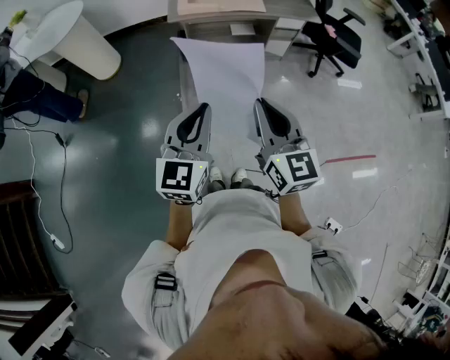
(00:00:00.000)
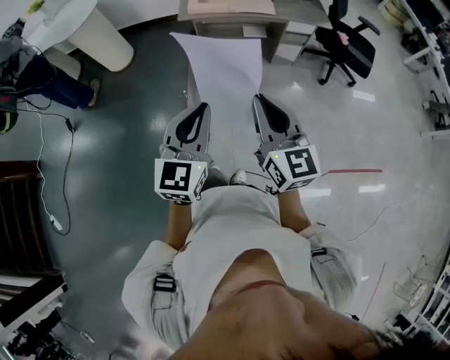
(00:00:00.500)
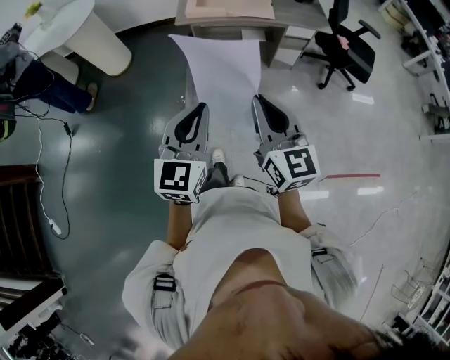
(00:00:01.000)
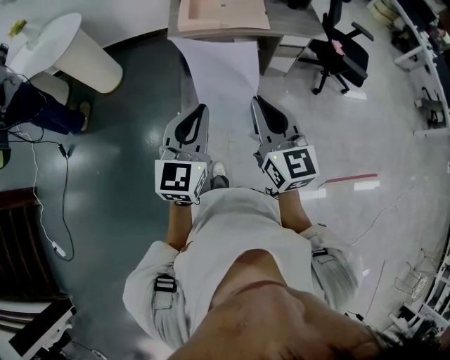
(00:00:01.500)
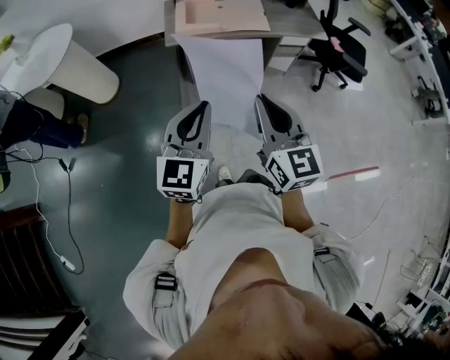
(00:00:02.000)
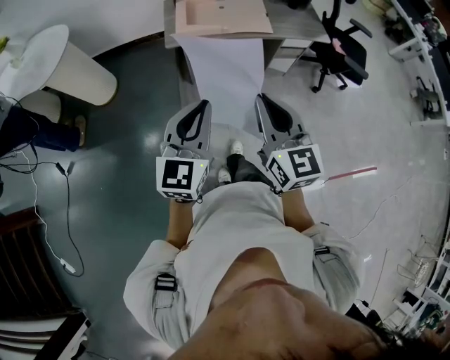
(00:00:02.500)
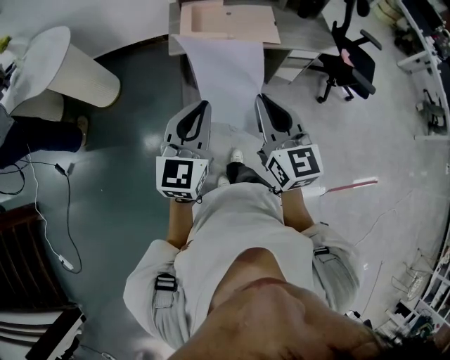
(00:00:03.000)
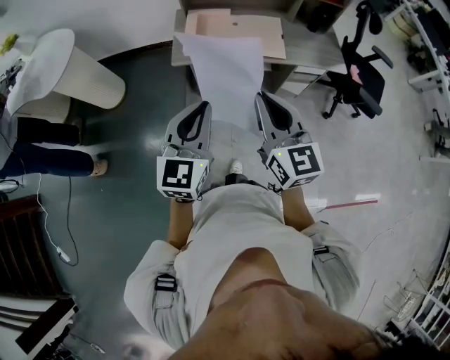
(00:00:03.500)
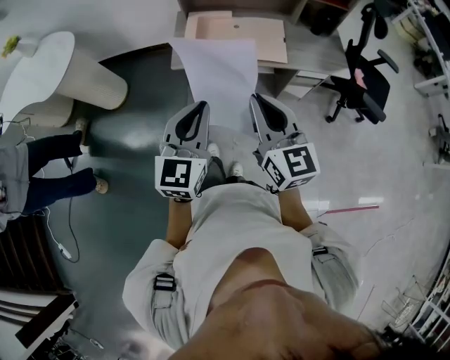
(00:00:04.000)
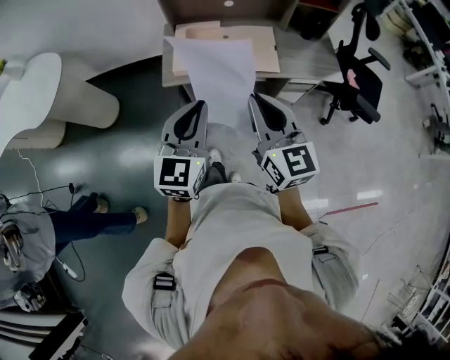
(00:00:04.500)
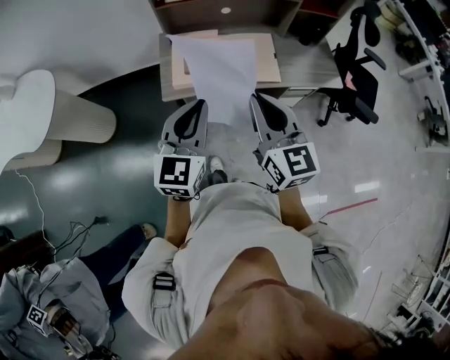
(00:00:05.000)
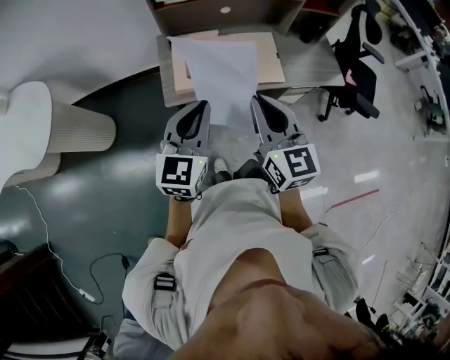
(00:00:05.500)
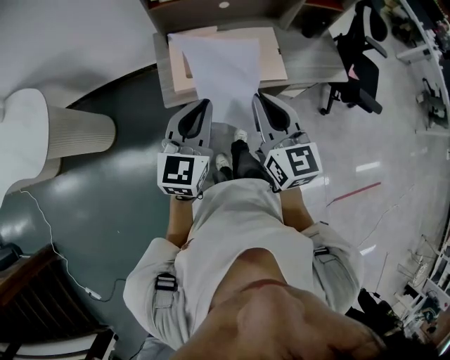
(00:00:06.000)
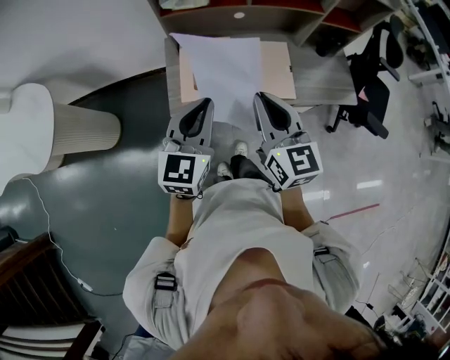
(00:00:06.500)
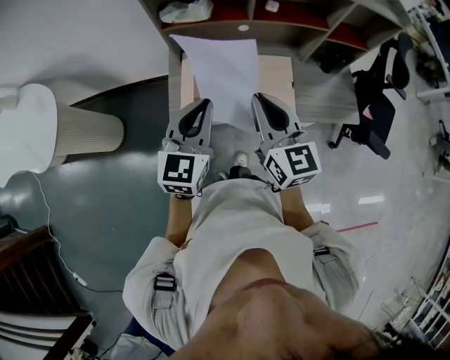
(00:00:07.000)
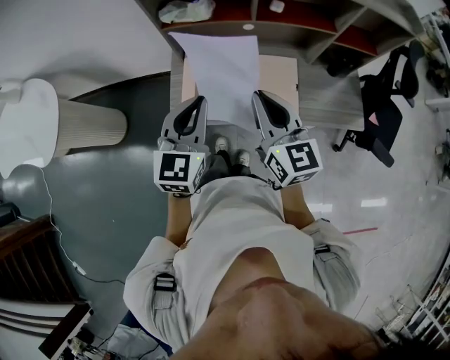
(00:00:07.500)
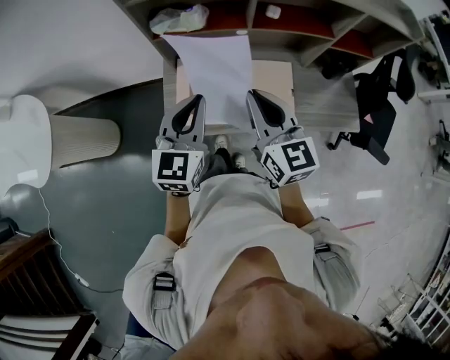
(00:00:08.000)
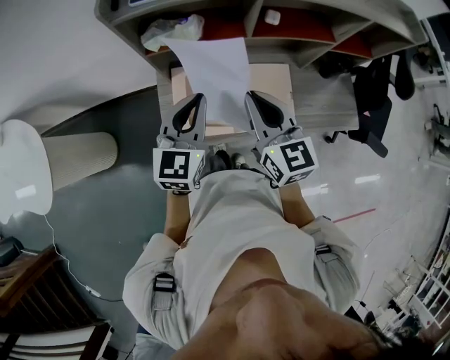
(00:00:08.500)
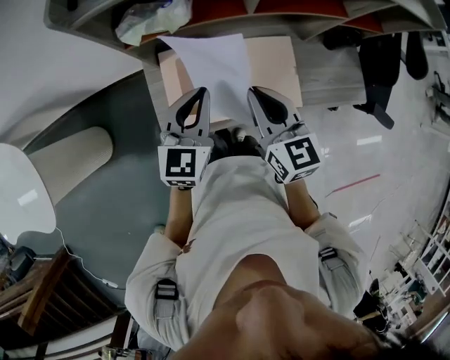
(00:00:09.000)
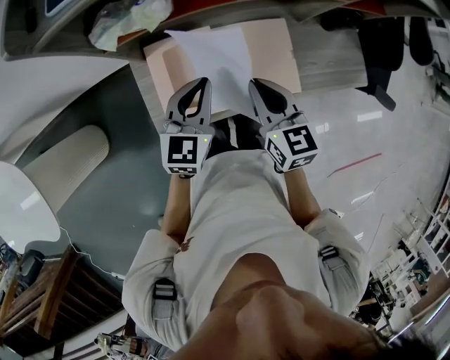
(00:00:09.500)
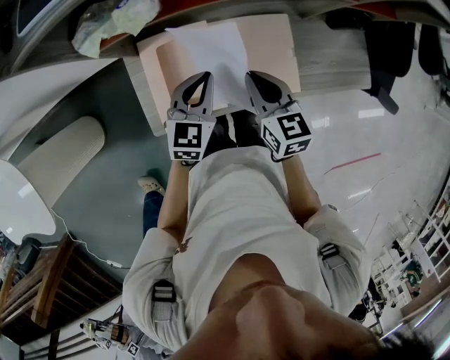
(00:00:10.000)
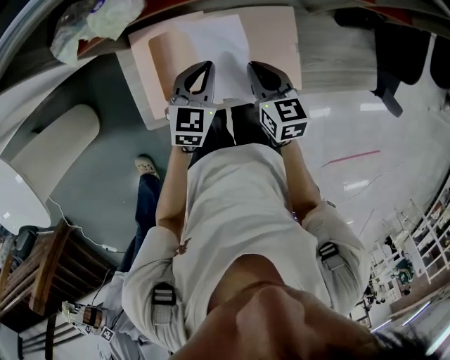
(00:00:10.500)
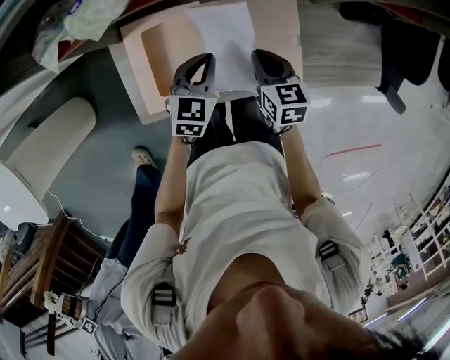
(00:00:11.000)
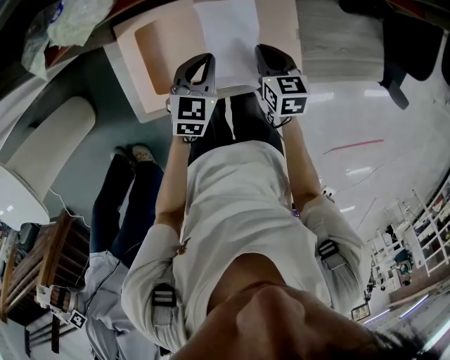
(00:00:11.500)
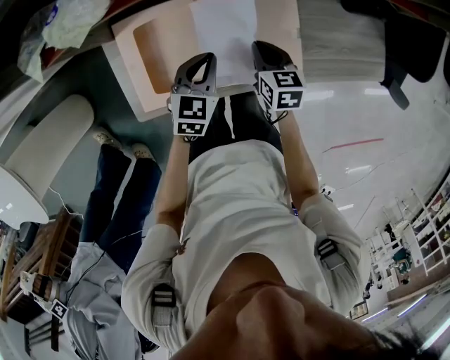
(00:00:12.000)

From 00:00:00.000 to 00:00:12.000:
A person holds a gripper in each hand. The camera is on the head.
From 00:00:00.000 to 00:00:02.000: The two grippers go some 20 cm forward.
From 00:00:02.000 to 00:00:04.000: The grippers both shift forward by about 25 cm.
From 00:00:04.000 to 00:00:06.000: Both grippers travel together forward, approximately 20 cm.
From 00:00:06.000 to 00:00:08.000: The grippers both shift forward by approximately 20 cm.
From 00:00:08.000 to 00:00:10.000: Both grippers move downward and forward, approximately 25 cm. The left gripper swivels approximately 20 degrees, while the right gripper rotates about 30 degrees.
From 00:00:10.000 to 00:00:12.000: The left gripper travels downward by about 10 cm; the right gripper shifts some 15 cm downward.

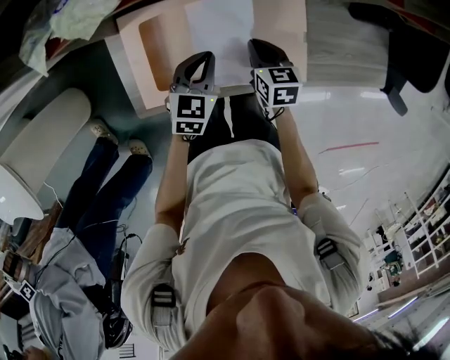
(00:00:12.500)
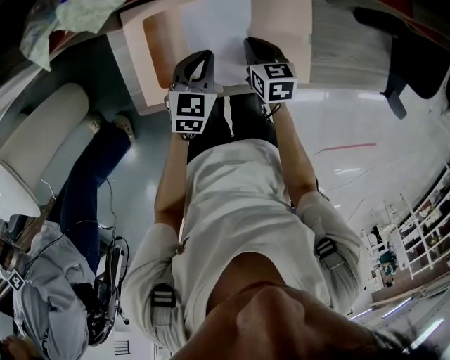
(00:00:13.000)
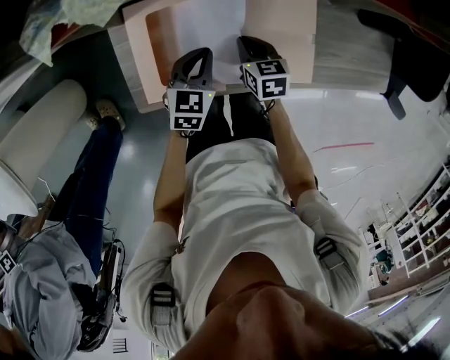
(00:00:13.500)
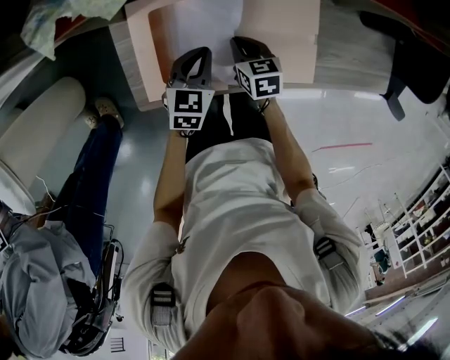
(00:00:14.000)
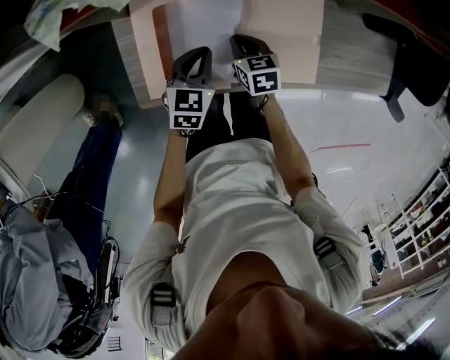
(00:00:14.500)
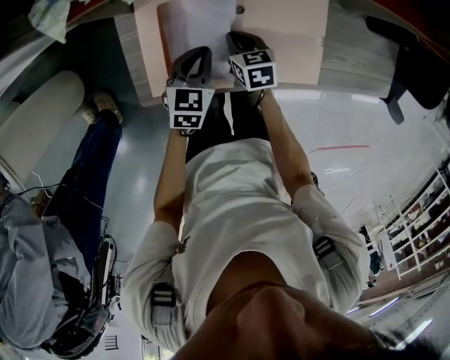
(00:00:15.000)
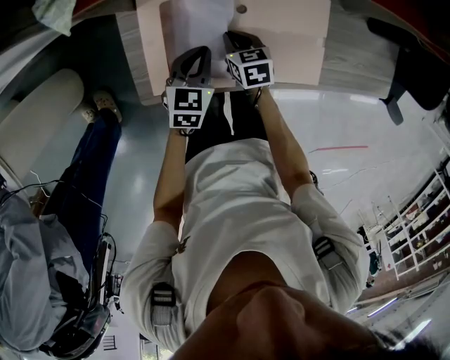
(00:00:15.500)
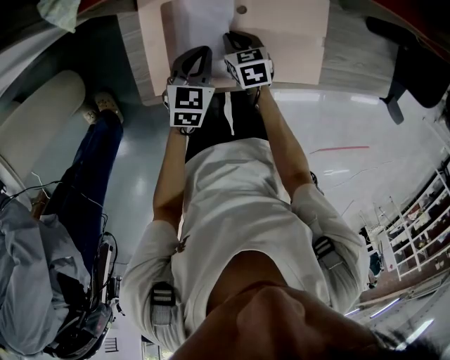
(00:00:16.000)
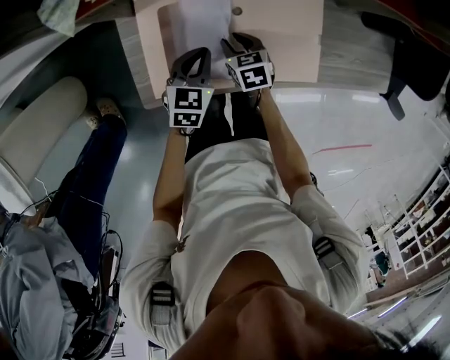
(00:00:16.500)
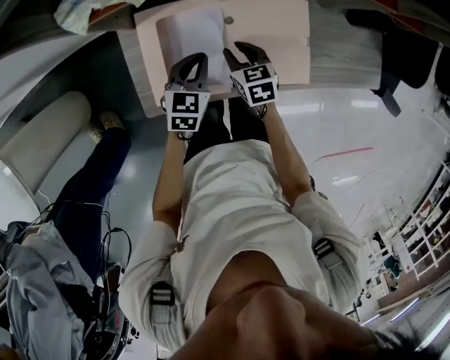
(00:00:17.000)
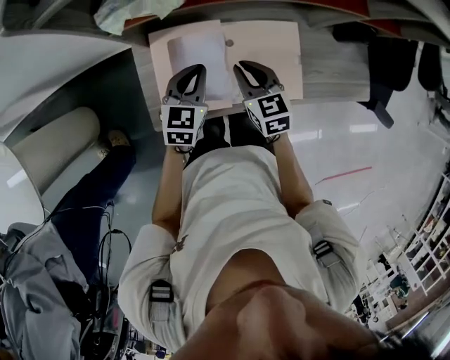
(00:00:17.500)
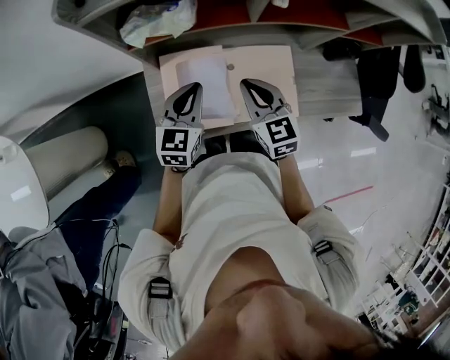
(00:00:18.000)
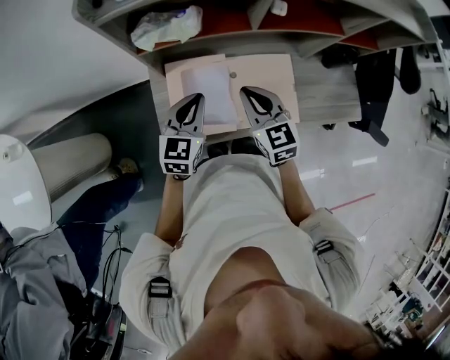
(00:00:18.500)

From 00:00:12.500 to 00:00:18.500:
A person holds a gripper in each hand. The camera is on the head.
From 00:00:12.500 to 00:00:14.500: The right gripper heads to the left, covering roughly 10 cm. The left gripper shifts about 5 cm to the left.
From 00:00:14.500 to 00:00:16.500: The right gripper opens up.
From 00:00:16.500 to 00:00:18.500: The grippers both shift upward by about 25 cm. The right gripper tilts its fingers about 30 degrees upward, and closes. Meanwhile the left gripper turns by some 20 degrees.

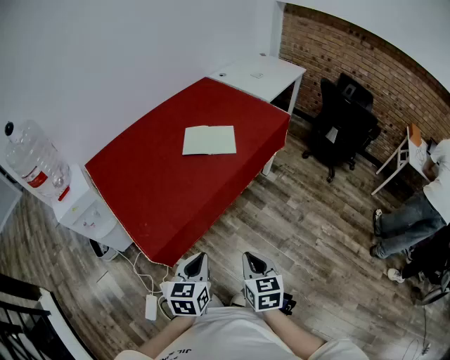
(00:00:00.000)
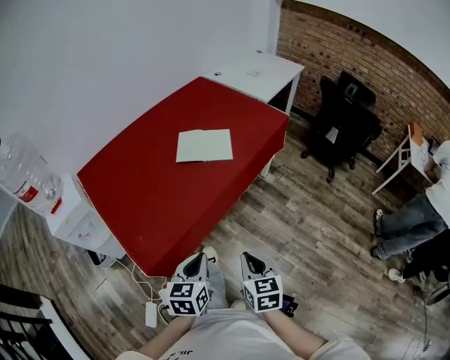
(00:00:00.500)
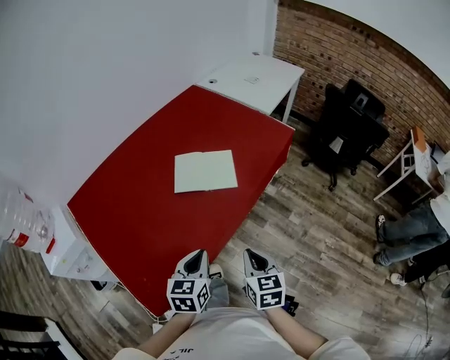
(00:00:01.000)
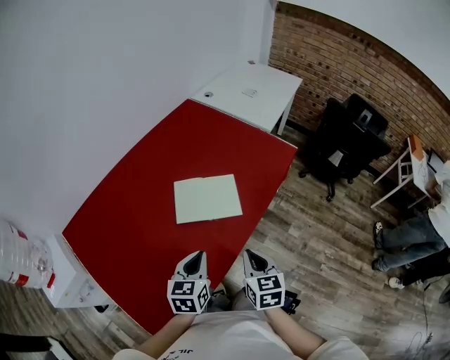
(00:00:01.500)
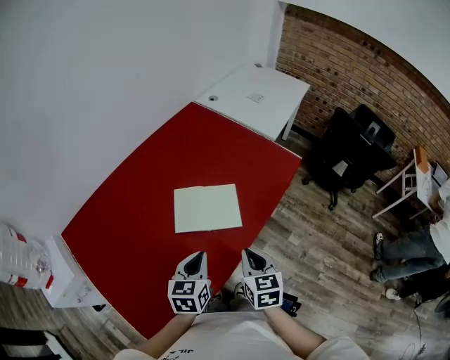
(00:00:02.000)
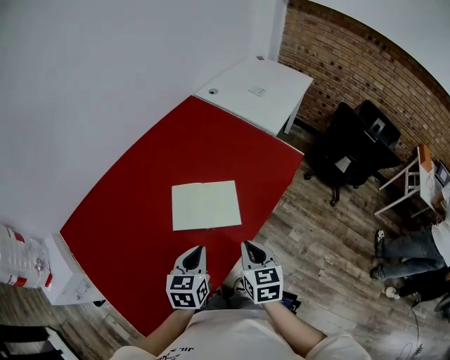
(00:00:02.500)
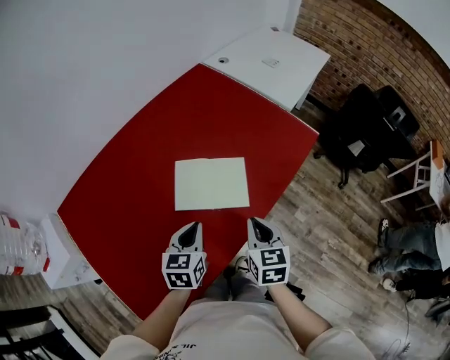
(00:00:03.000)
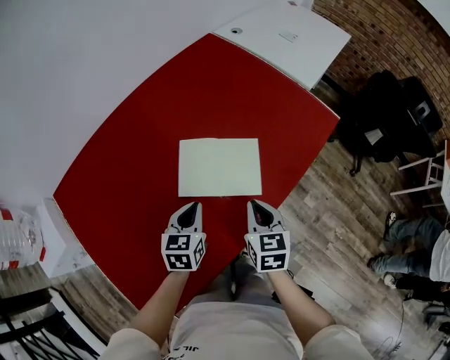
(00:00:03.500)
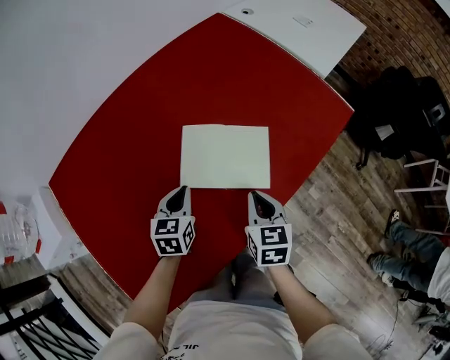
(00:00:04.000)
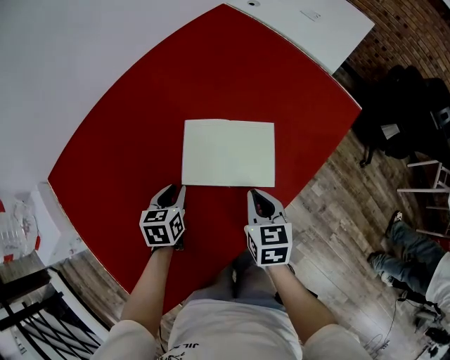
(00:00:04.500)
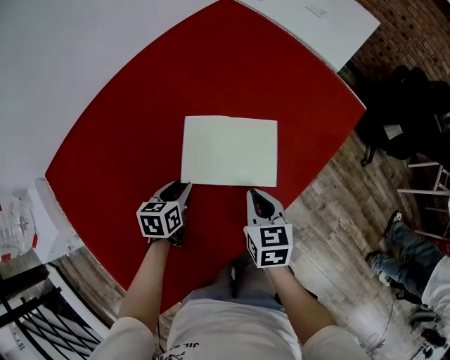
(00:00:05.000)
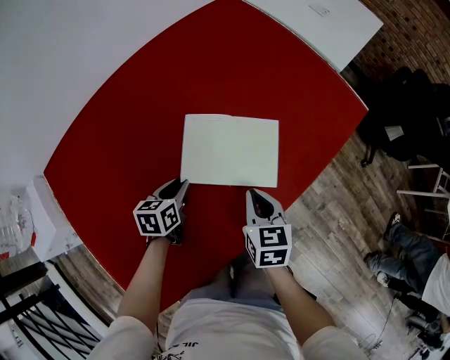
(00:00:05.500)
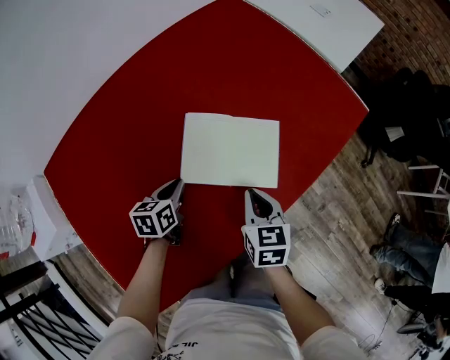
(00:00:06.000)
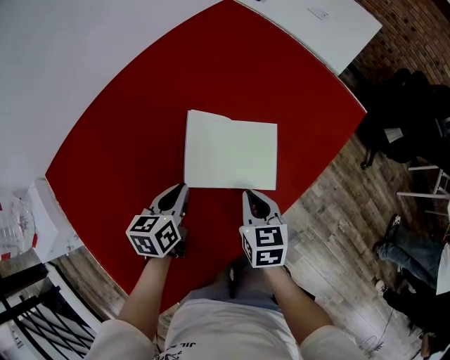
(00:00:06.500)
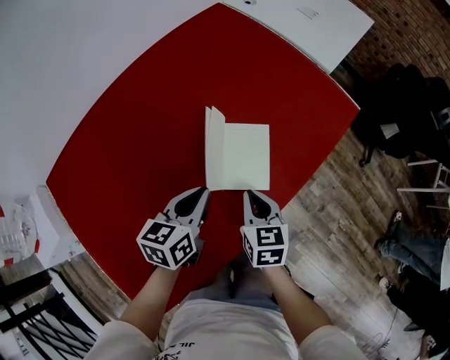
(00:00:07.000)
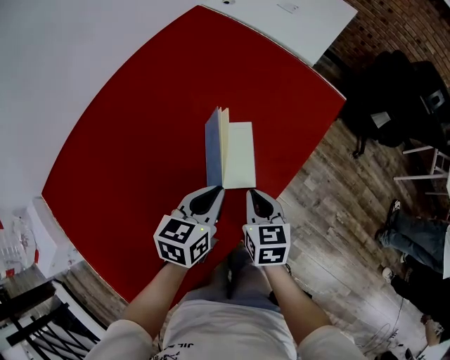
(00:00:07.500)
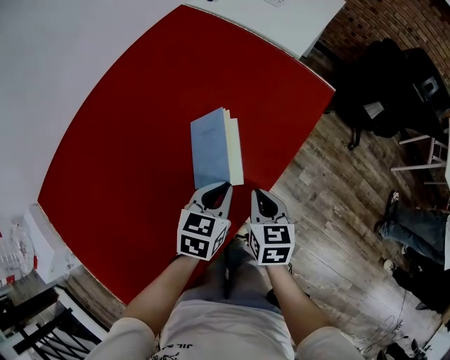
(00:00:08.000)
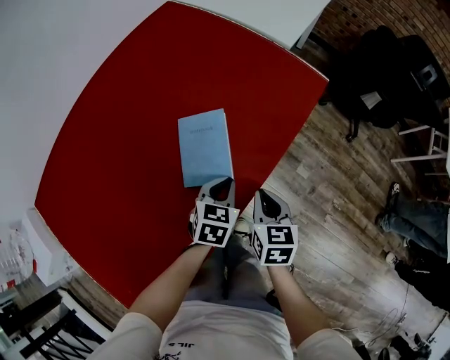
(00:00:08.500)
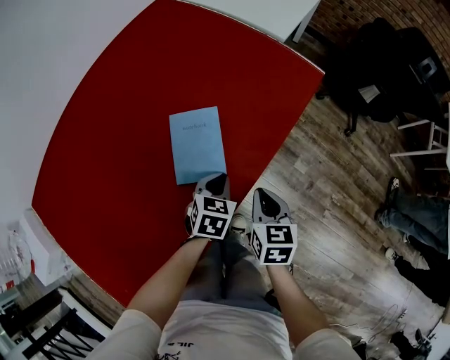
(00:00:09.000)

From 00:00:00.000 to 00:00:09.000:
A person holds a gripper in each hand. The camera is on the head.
From 00:00:00.000 to 00:00:02.000: The pair of grippers is taken forward, some 40 cm.
From 00:00:02.000 to 00:00:04.500: The right gripper shifts approximately 20 cm downward and forward; the left gripper goes some 25 cm downward, to the left and forward.
From 00:00:04.500 to 00:00:07.000: The left gripper heads to the right and upward, covering about 15 cm, and changes its angle by approximately 20 degrees.
From 00:00:07.000 to 00:00:09.000: The left gripper moves to the right and downward, about 25 cm, and changes its angle by approximately 30 degrees. Meanwhile the right gripper goes approximately 15 cm to the right.
